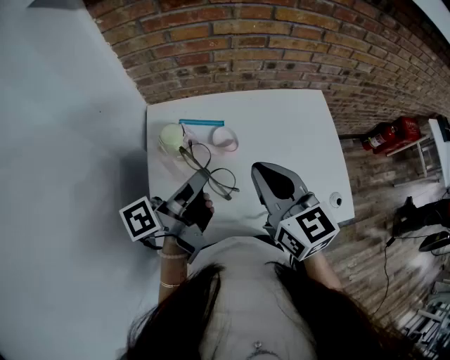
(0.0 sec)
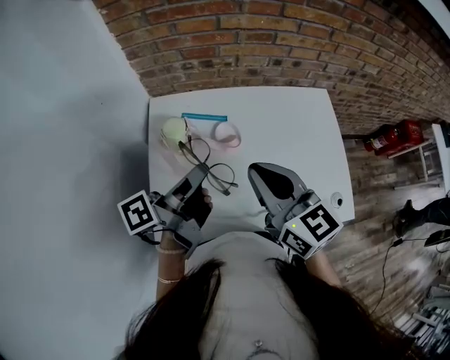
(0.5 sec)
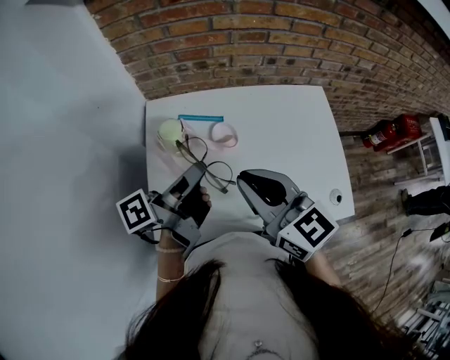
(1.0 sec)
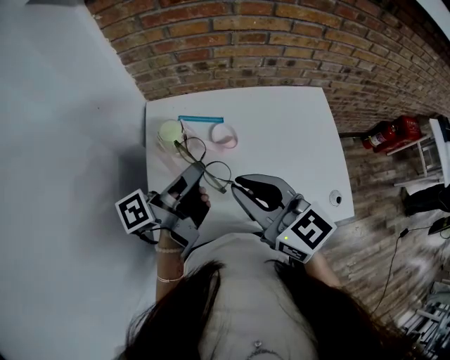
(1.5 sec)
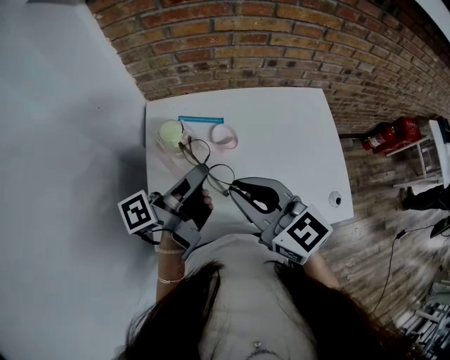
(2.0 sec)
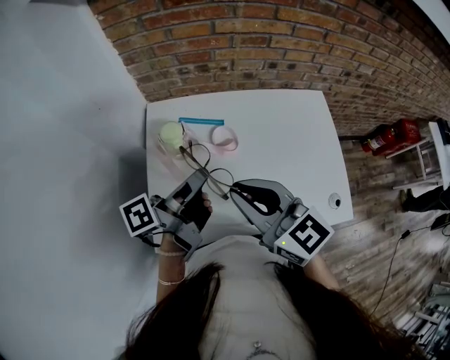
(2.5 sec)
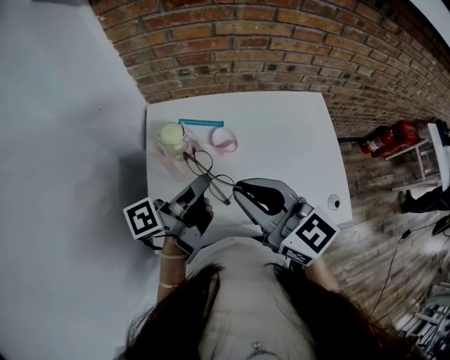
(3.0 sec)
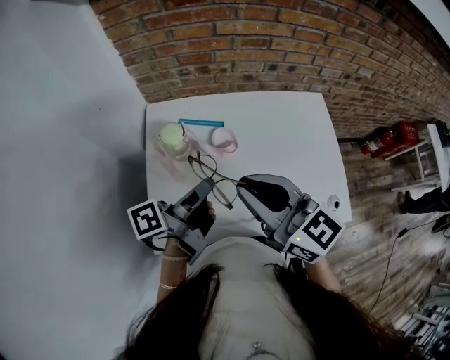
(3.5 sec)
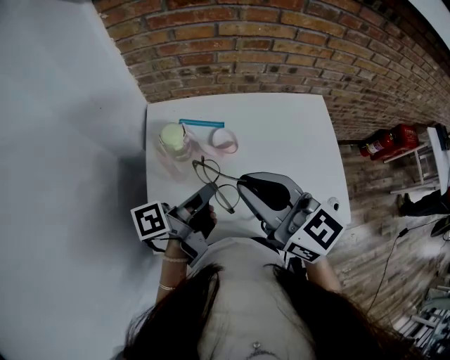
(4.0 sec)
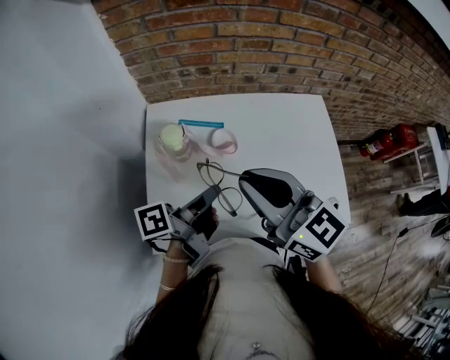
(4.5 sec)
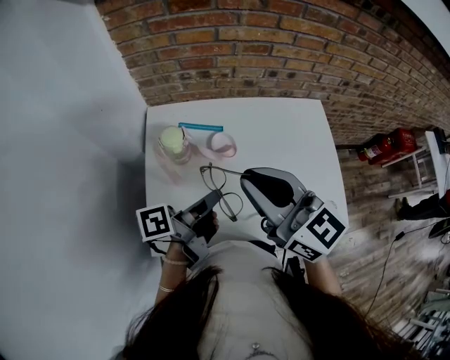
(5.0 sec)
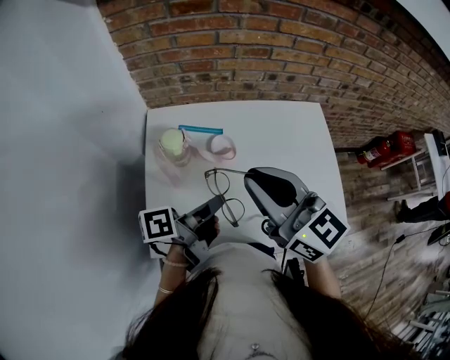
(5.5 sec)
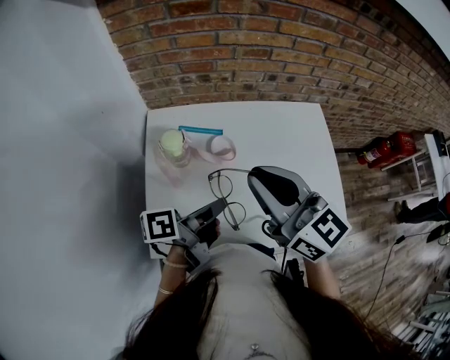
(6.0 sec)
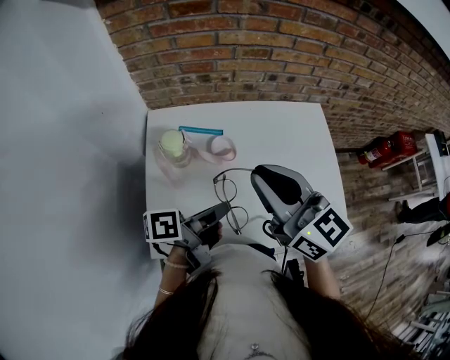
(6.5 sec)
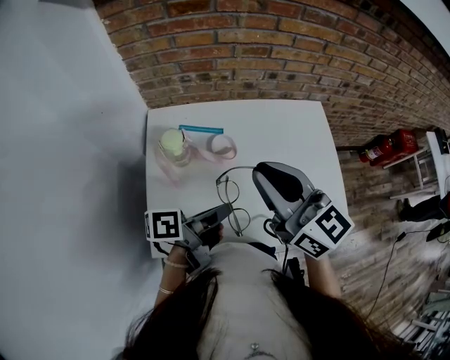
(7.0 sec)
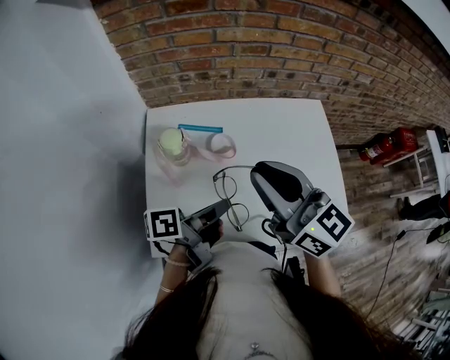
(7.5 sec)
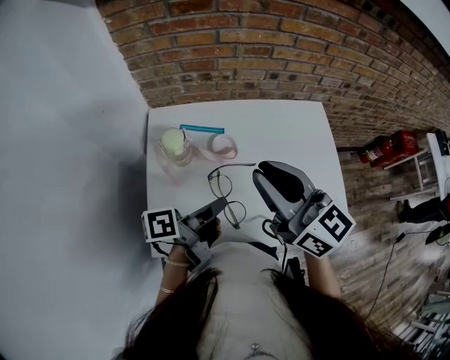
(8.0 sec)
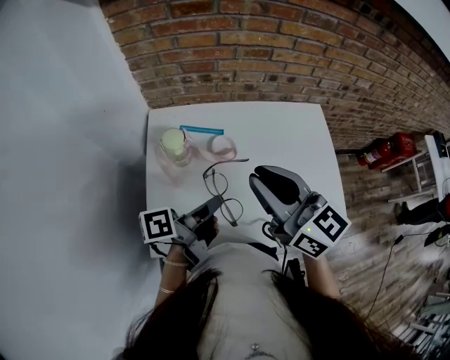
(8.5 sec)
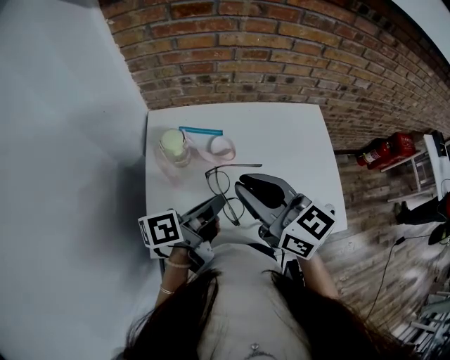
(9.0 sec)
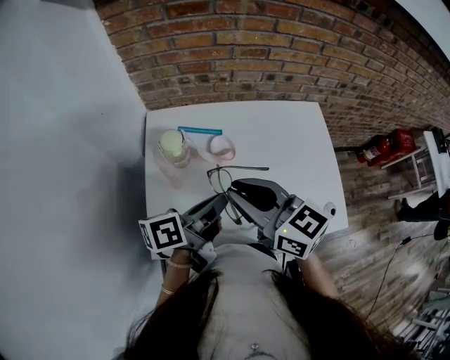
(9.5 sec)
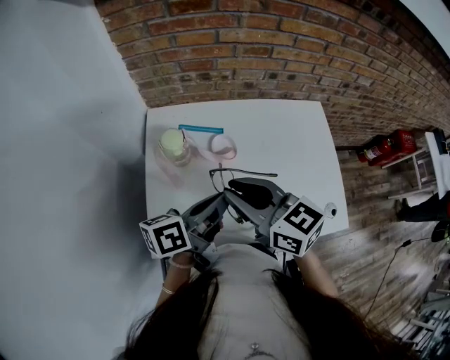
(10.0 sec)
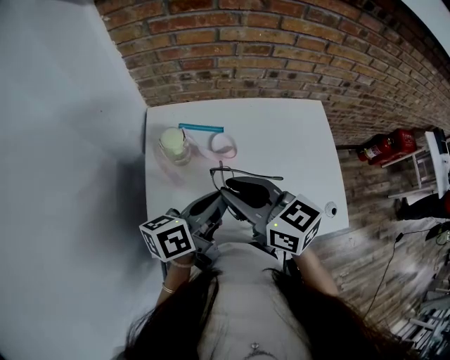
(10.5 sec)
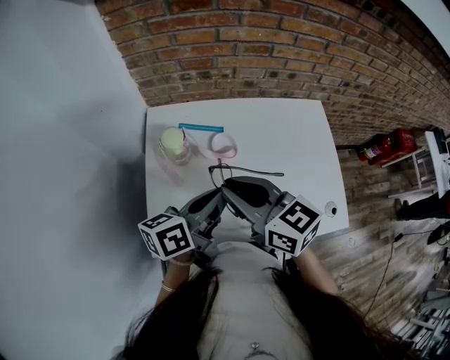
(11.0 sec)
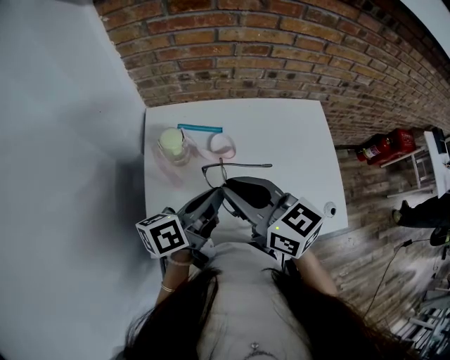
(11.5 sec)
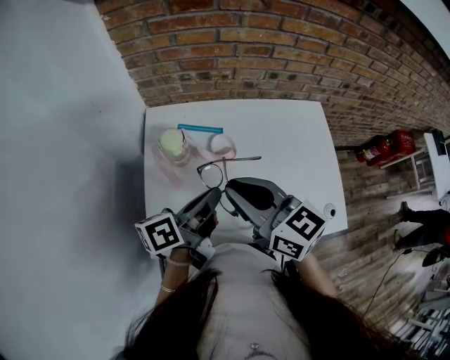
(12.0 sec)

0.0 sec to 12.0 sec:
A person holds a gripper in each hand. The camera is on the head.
0.0 sec to 2.0 sec: The right gripper changes place by some 5 cm.
8.0 sec to 10.0 sec: The right gripper travels downward by some 5 cm.

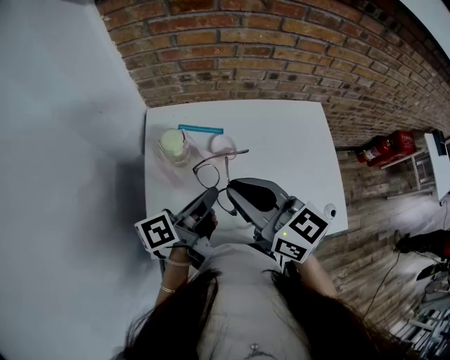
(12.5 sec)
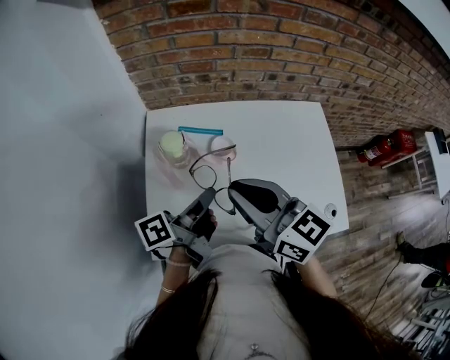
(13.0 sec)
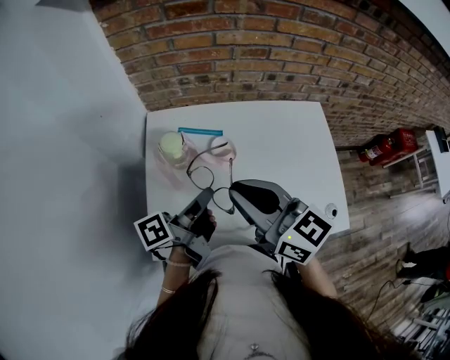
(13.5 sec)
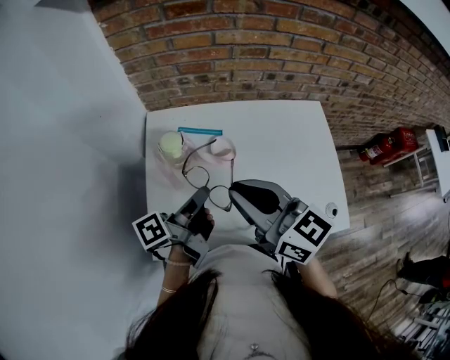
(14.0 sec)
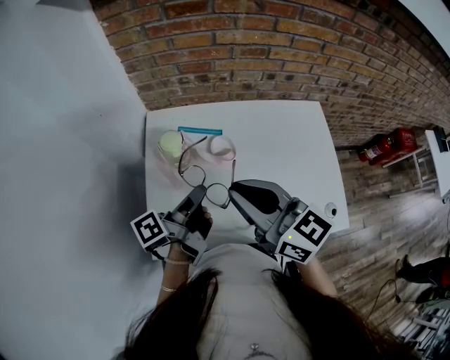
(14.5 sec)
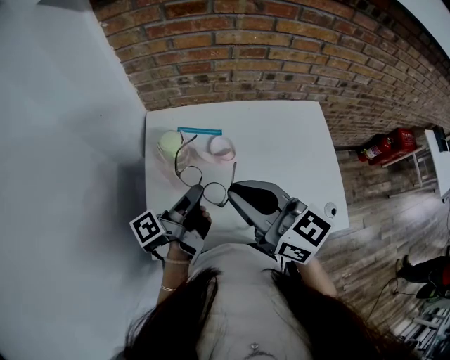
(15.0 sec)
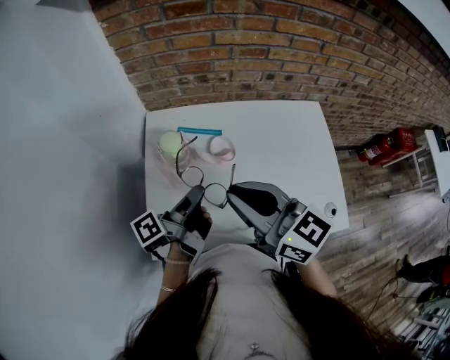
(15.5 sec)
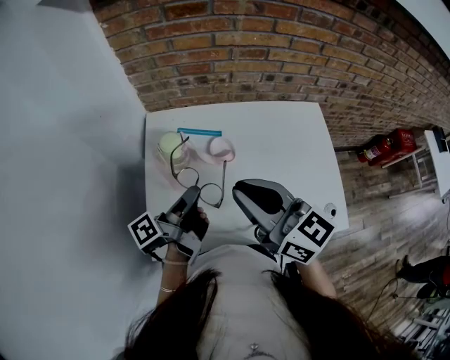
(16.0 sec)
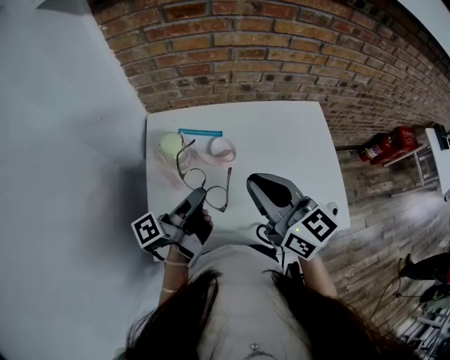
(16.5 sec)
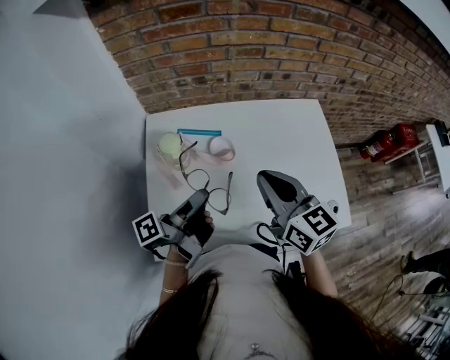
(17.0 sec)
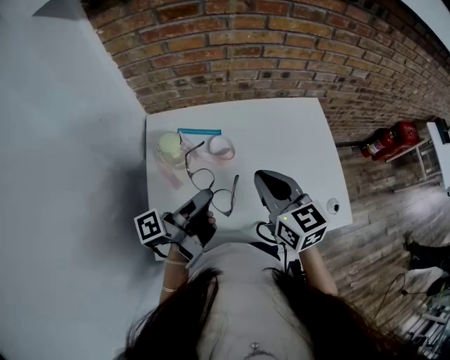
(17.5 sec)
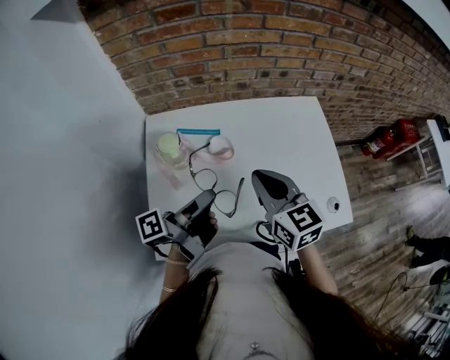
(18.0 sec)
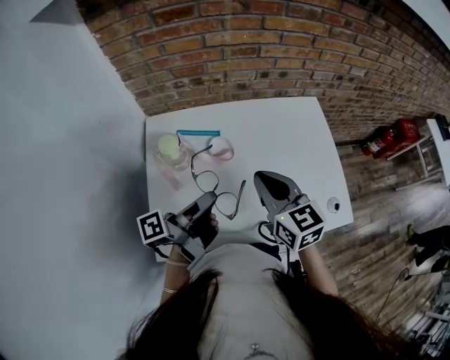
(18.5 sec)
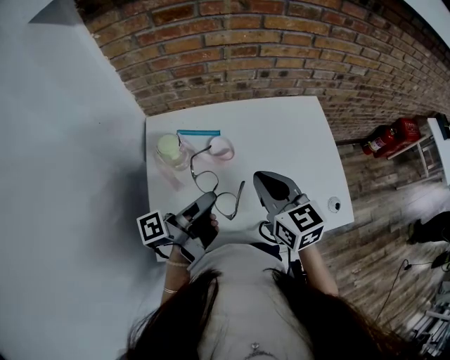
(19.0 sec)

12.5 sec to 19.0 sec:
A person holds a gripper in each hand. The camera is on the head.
14.5 sec to 17.0 sec: The right gripper changes place by about 10 cm.

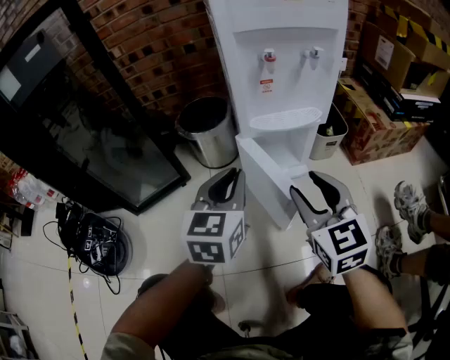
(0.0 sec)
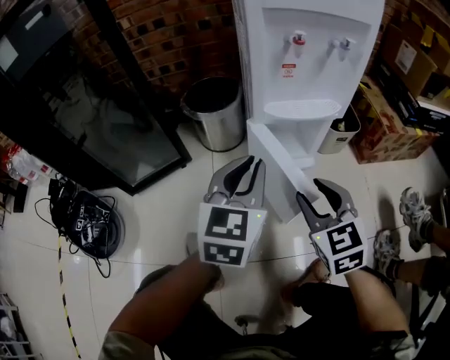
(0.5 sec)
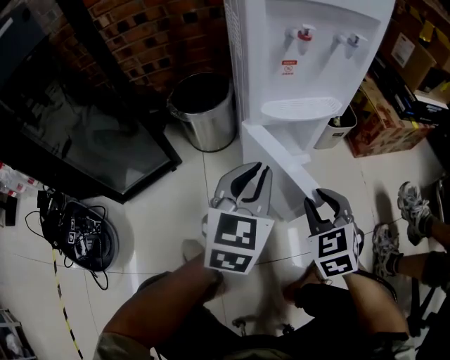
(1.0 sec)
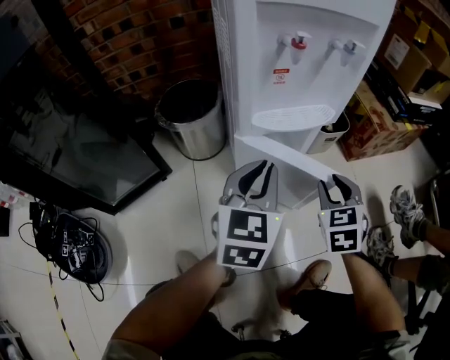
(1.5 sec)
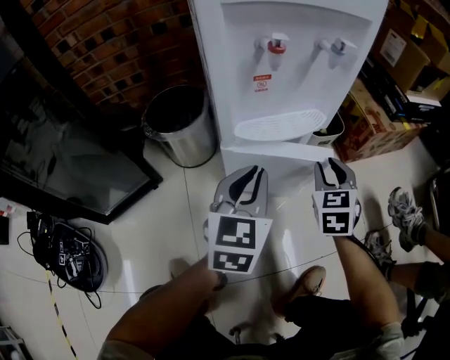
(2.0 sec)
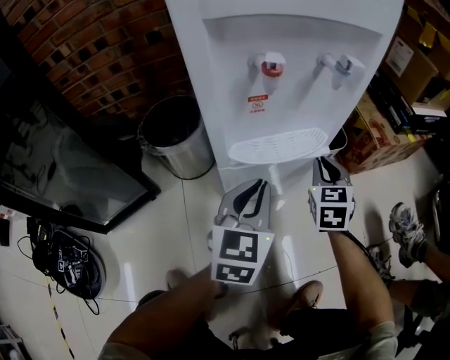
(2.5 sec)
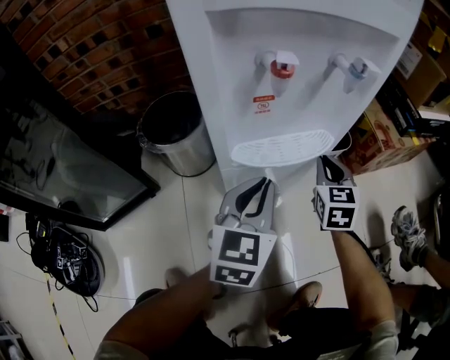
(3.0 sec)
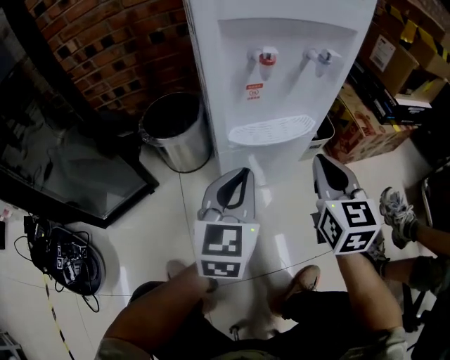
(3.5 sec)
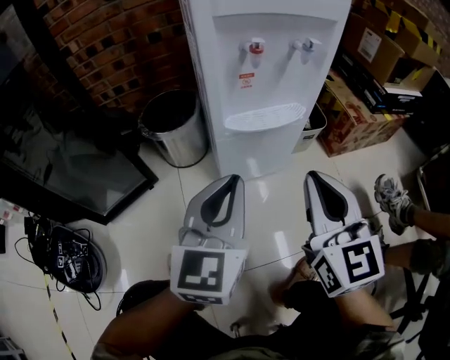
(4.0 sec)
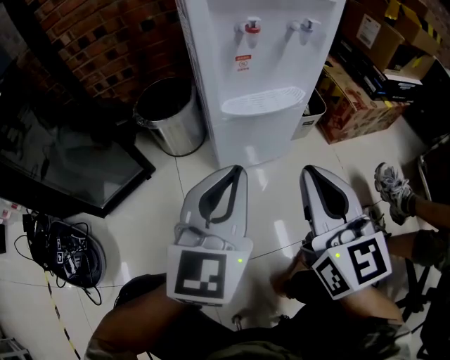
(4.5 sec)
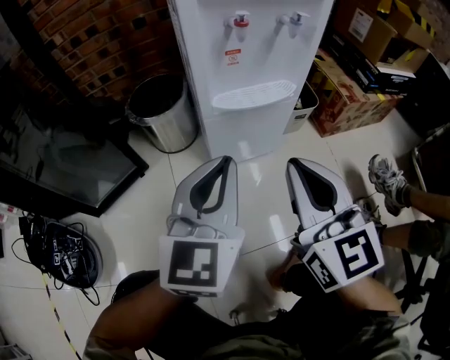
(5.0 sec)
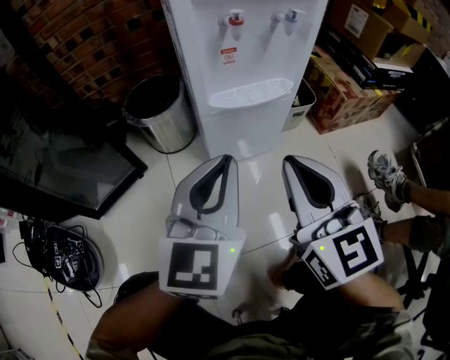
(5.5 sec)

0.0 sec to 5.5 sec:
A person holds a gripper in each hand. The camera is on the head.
0.0 sec to 2.0 sec: The right gripper shifts about 25 cm forward, downward and to the right, and turns by roughly 30 degrees; the left gripper goes about 15 cm forward, to the right and downward.
2.0 sec to 3.5 sec: The right gripper travels upward by roughly 10 cm, turns by some 20 degrees, and closes its fingers.
3.5 sec to 5.5 sec: The left gripper travels backward and upward by some 10 cm. Meanwhile the right gripper heads backward, to the left and upward, covering some 15 cm.

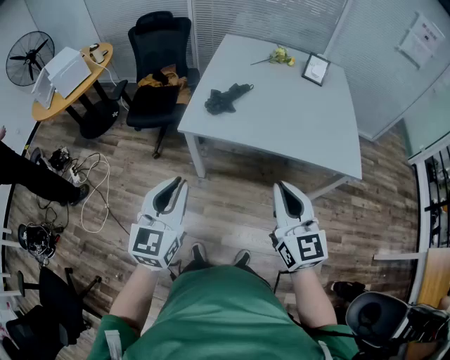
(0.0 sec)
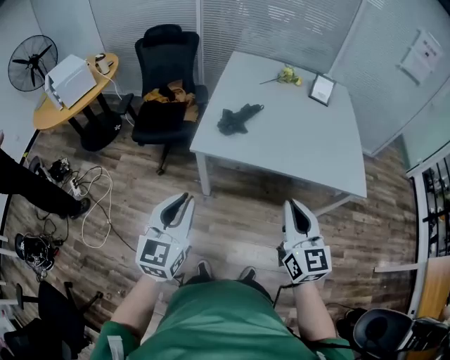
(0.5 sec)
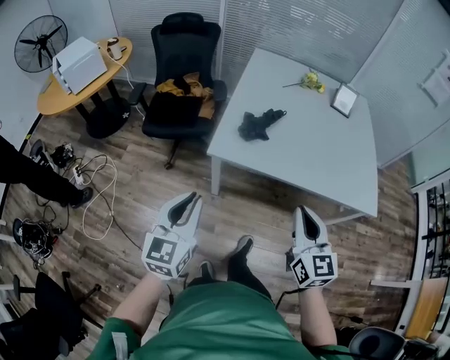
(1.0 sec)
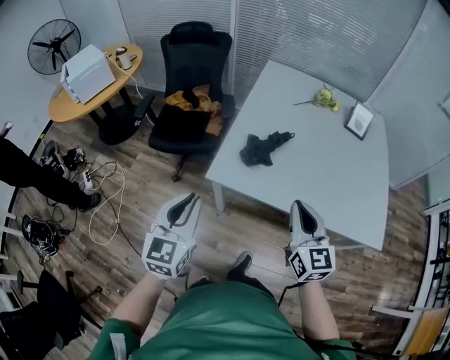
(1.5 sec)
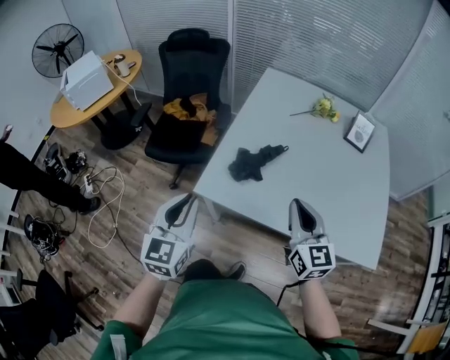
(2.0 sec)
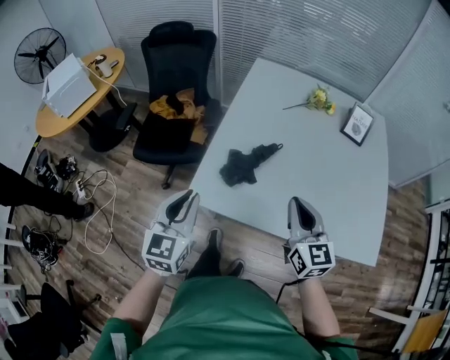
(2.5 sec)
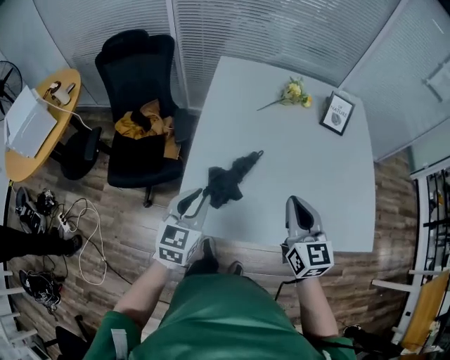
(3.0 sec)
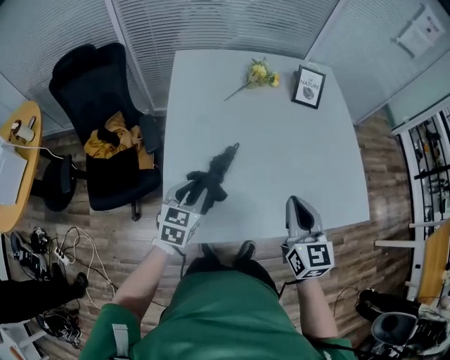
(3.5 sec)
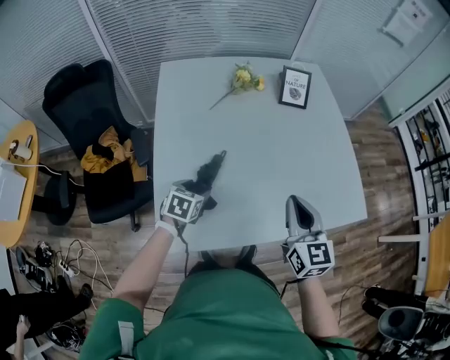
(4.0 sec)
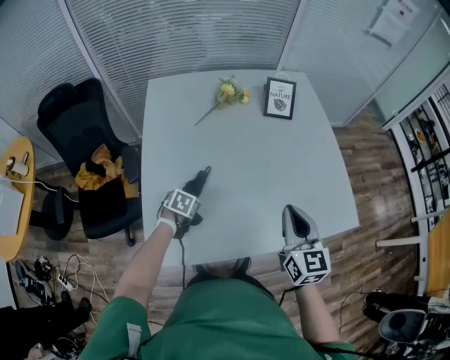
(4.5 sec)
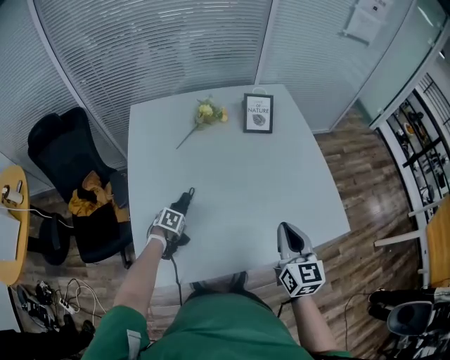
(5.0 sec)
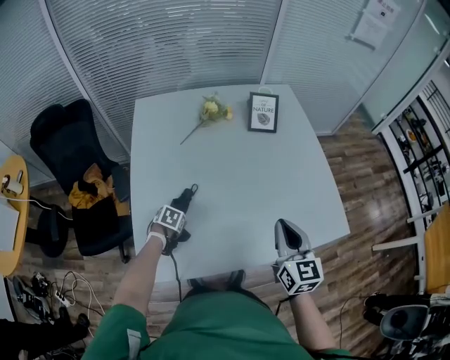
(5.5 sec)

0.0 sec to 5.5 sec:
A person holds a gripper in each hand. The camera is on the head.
0.0 sec to 2.0 sec: Both grippers move forward, approximately 30 cm.
2.0 sec to 3.5 sec: The left gripper changes place by some 35 cm, and changes its angle by some 40 degrees; the right gripper moves some 15 cm, and turns by about 30 degrees.
3.5 sec to 5.5 sec: The right gripper shifts by some 15 cm, while the left gripper travels downward by roughly 15 cm, tips its fingers downward by roughly 40 degrees, and opens up.
